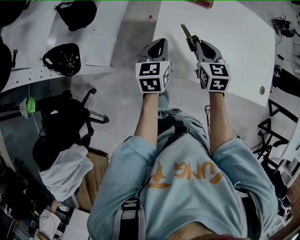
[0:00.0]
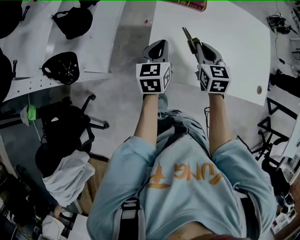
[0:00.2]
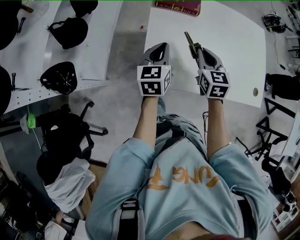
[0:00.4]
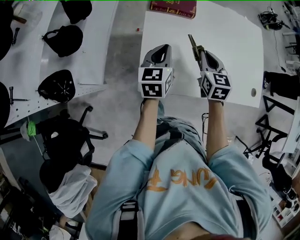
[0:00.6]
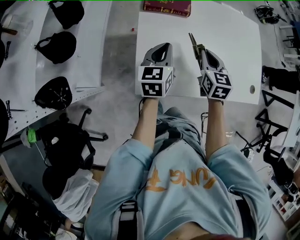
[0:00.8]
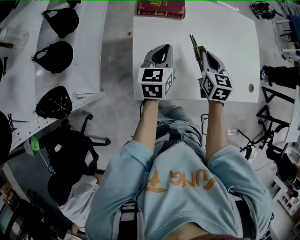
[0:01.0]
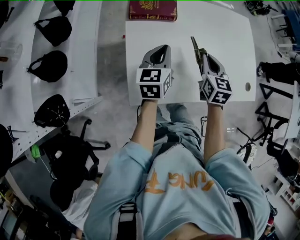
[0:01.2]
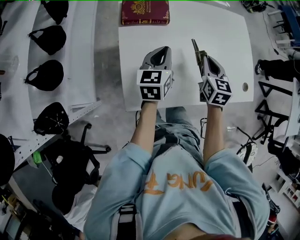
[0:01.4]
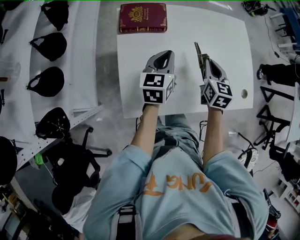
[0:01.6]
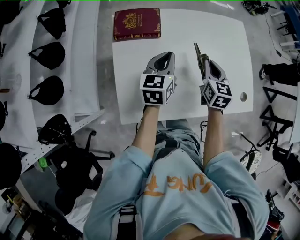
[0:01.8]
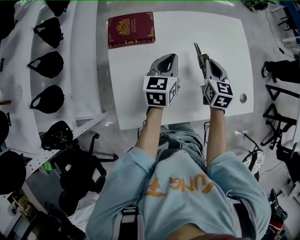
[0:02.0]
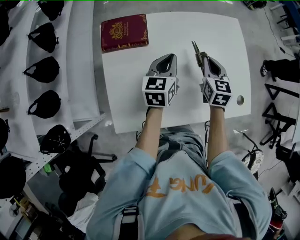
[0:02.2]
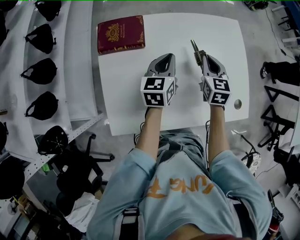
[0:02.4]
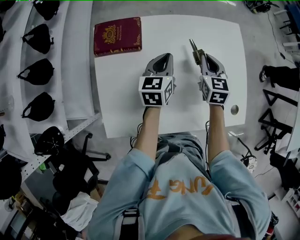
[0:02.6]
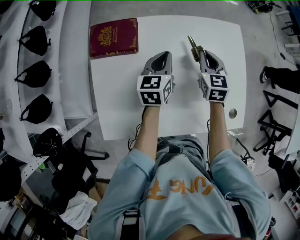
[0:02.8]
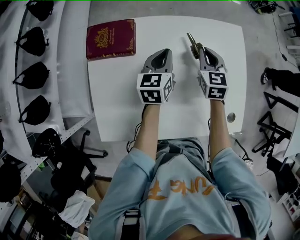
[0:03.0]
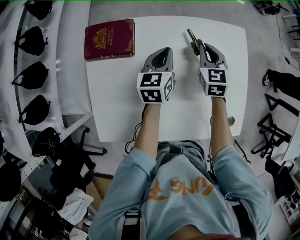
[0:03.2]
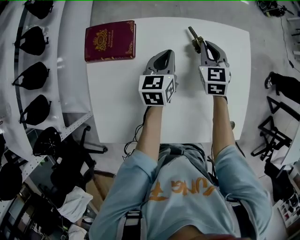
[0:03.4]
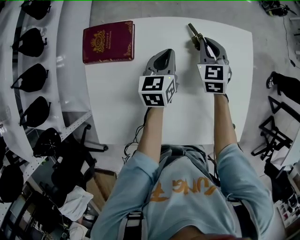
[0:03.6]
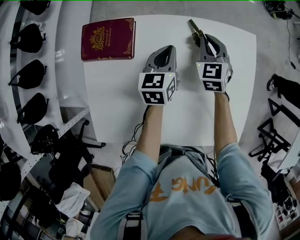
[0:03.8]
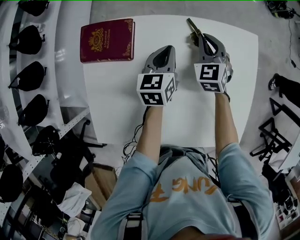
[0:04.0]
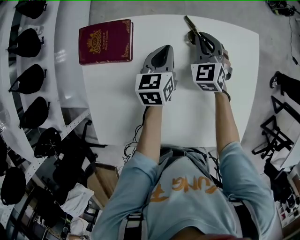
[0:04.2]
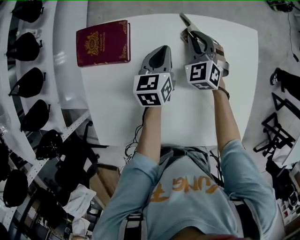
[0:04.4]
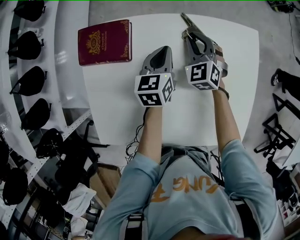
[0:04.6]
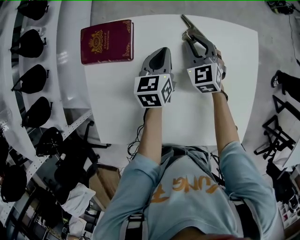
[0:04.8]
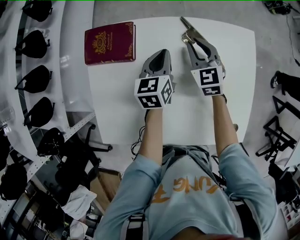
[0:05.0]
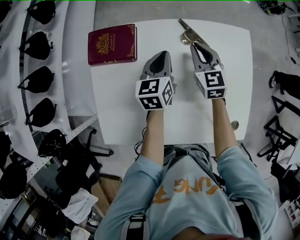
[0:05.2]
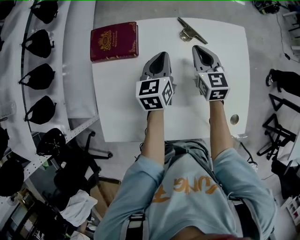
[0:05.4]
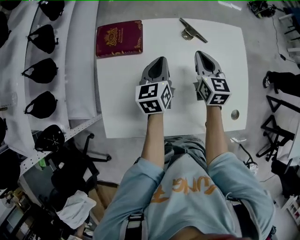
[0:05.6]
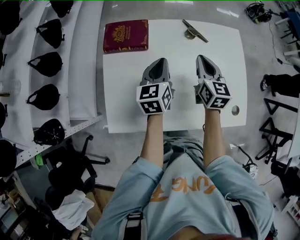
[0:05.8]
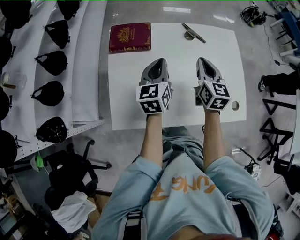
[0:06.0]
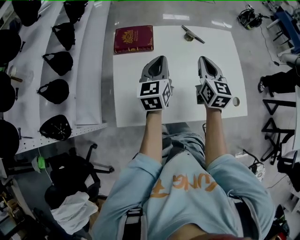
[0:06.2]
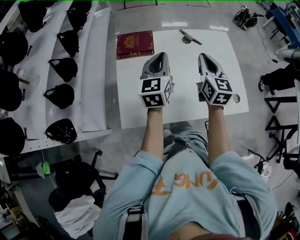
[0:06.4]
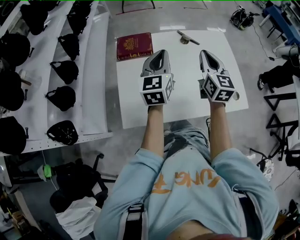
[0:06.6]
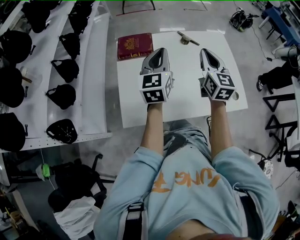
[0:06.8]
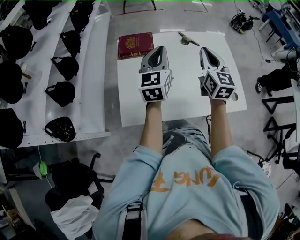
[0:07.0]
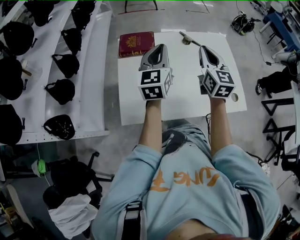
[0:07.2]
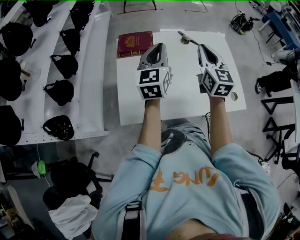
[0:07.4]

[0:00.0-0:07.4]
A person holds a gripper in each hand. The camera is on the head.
0.0 to 1.4 s: The grippers both shift to the right and forward by approximately 20 cm. The right gripper turns by some 30 degrees.
1.4 to 3.0 s: Both grippers move forward and to the right, about 25 cm.
3.0 to 4.4 s: The left gripper goes approximately 10 cm forward and downward. The right gripper travels forward, downward and to the left by about 10 cm, and swivels about 40 degrees.
4.4 to 6.0 s: The right gripper shifts some 25 cm backward and upward, and rotates around the line of its fingers by about 50 degrees, clockwise from behind; the left gripper shifts roughly 25 cm backward, upward and to the left.
6.0 to 7.4 s: The left gripper moves upward, about 10 cm, while the right gripper shifts some 15 cm upward and backward.

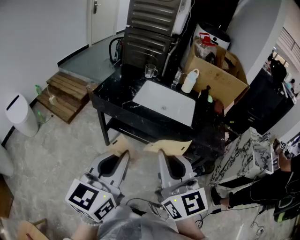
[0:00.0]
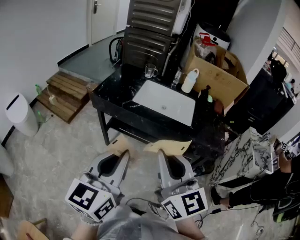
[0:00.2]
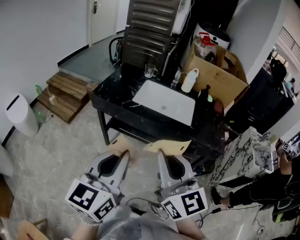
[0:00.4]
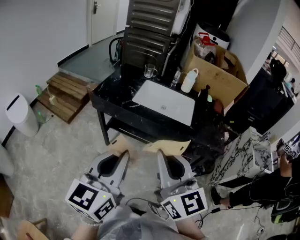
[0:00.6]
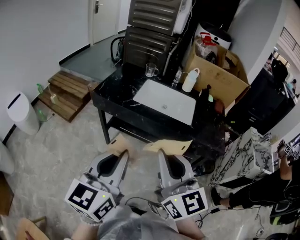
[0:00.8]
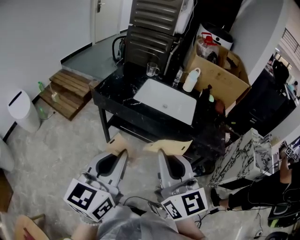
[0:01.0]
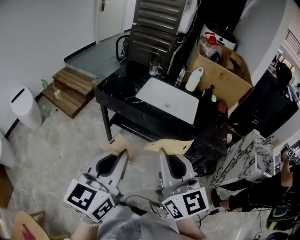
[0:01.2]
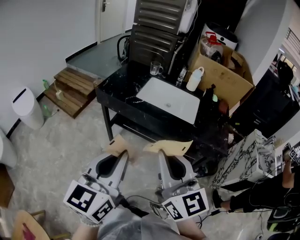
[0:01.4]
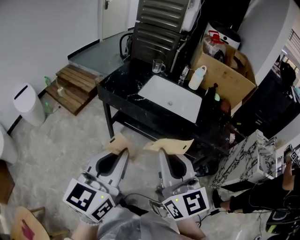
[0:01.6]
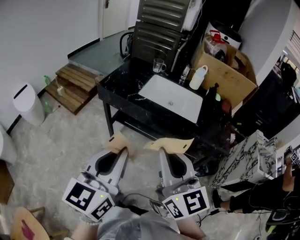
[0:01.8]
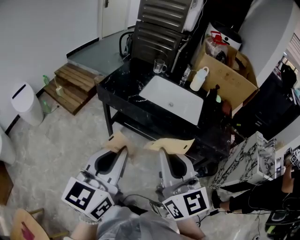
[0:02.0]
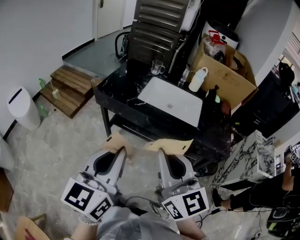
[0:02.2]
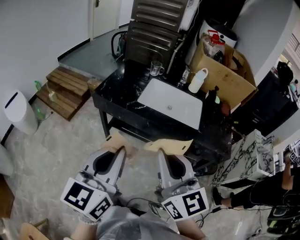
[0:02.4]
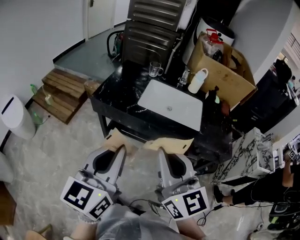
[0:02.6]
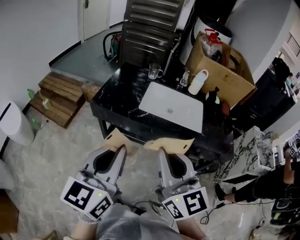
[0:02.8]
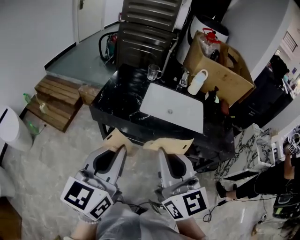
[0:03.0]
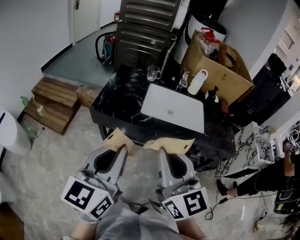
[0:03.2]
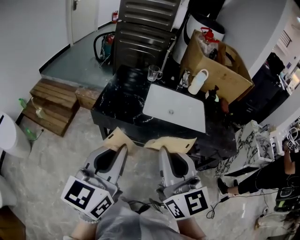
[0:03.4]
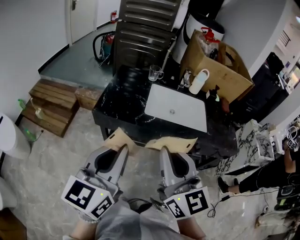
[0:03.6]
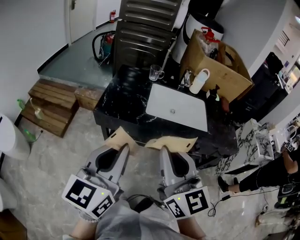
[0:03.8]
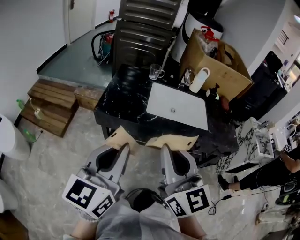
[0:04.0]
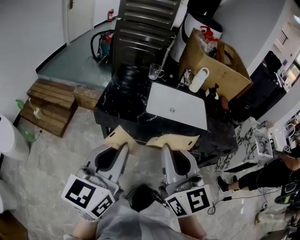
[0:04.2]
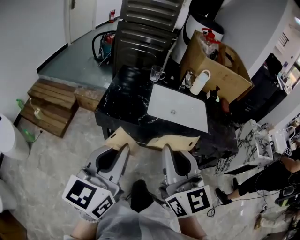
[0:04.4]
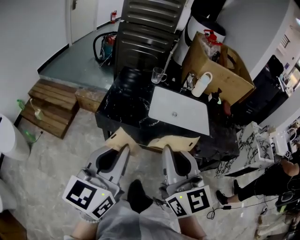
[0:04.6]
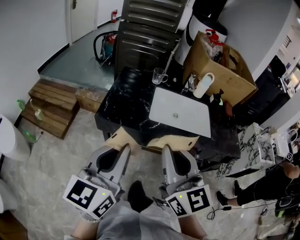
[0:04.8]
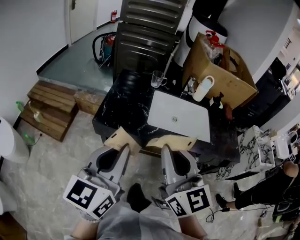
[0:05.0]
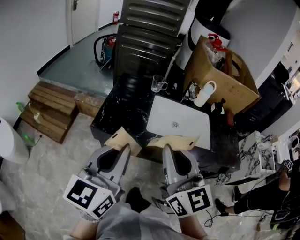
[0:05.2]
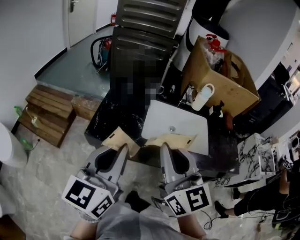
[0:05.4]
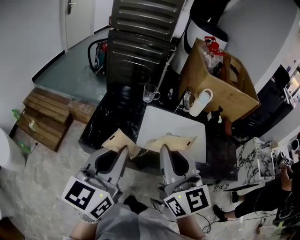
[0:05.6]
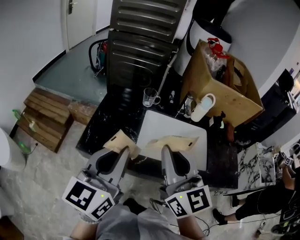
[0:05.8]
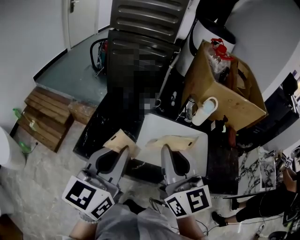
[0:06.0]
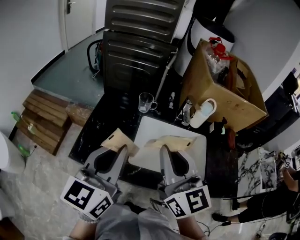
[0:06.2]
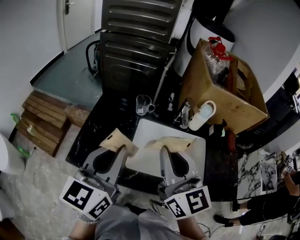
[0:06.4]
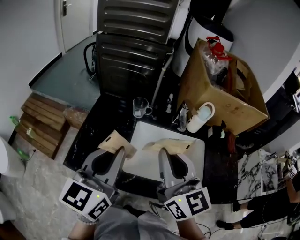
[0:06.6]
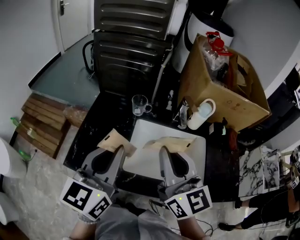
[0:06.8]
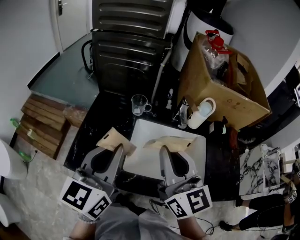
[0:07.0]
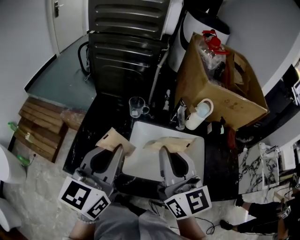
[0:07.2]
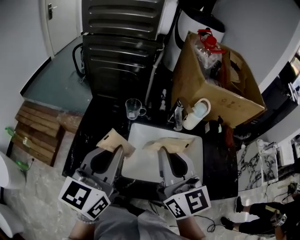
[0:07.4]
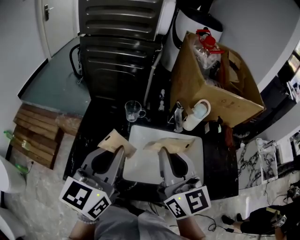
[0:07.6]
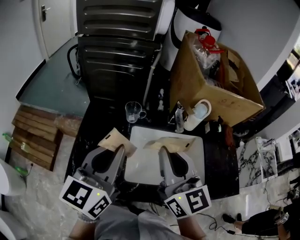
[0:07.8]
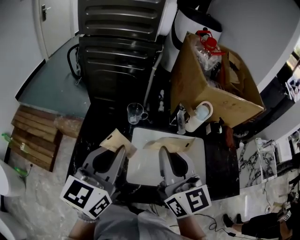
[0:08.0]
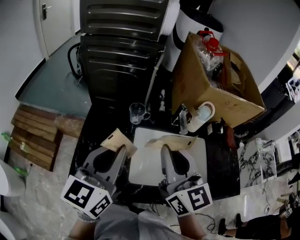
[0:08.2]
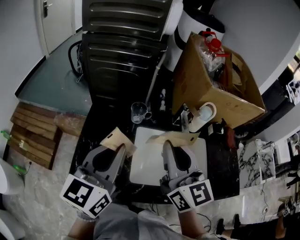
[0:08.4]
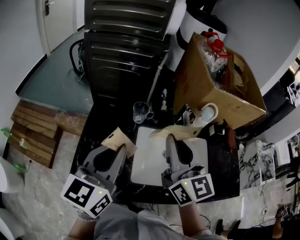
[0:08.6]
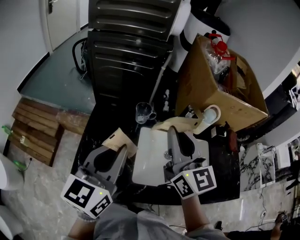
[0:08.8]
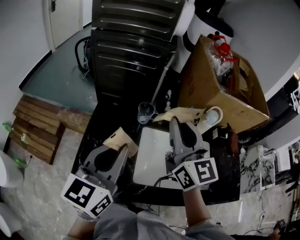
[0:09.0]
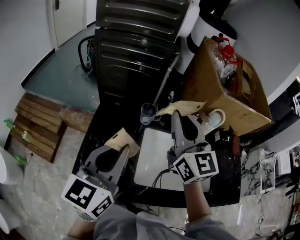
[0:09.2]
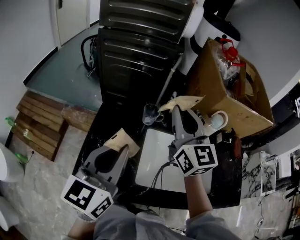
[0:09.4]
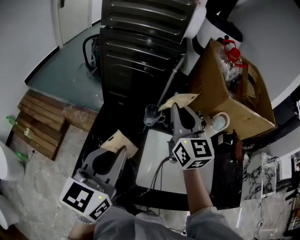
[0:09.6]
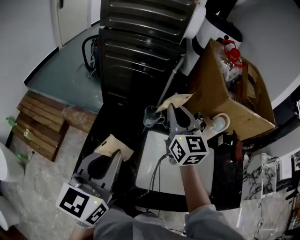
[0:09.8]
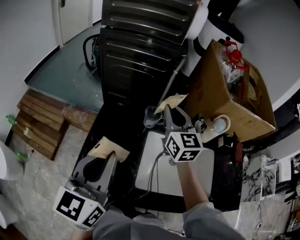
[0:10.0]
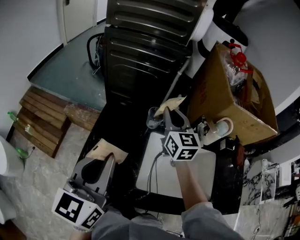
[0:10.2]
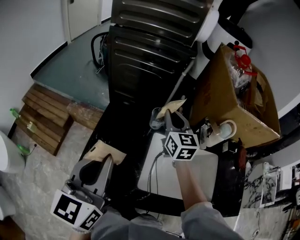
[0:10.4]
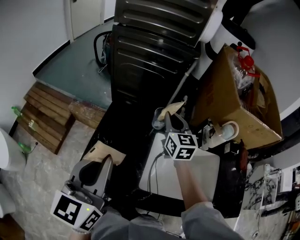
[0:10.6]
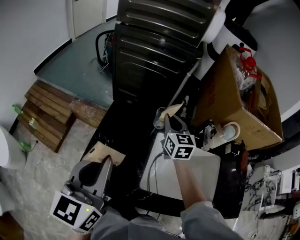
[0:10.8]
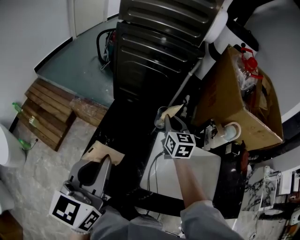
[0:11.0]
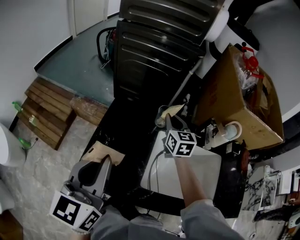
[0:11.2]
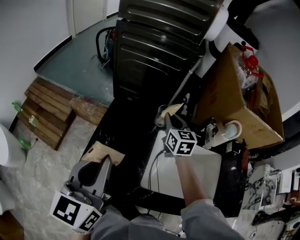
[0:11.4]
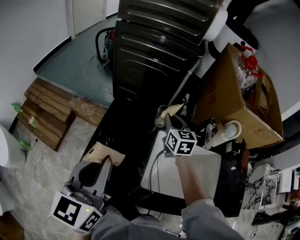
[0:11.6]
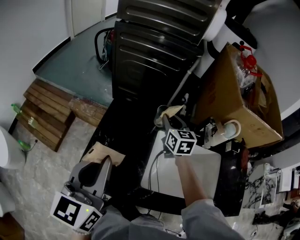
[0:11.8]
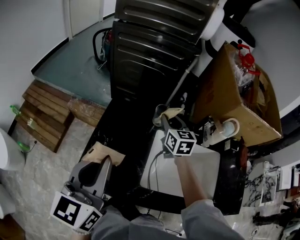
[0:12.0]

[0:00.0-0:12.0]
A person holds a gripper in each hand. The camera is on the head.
0.0 to 1.6 s: The grippers make only small movements.
1.6 to 3.0 s: Both grippers travel together forward and to the left, roughly 20 cm.
3.0 to 4.4 s: Both grippers move to the left, some 5 cm.
4.4 to 6.0 s: Both grippers move forward, some 30 cm.
6.0 to 7.6 s: Both grippers travel together forward, roughly 10 cm.
7.6 to 9.0 s: The left gripper shifts roughly 5 cm to the left; the right gripper goes roughly 10 cm forward and to the left.
9.0 to 10.4 s: The right gripper is displaced forward and downward by some 20 cm, while the left gripper is displaced to the left by approximately 5 cm.
10.4 to 12.0 s: The right gripper moves downward, approximately 5 cm, and opens up.

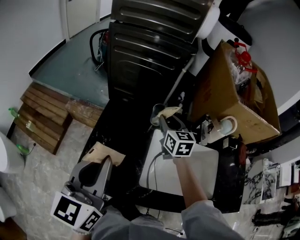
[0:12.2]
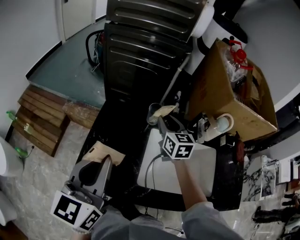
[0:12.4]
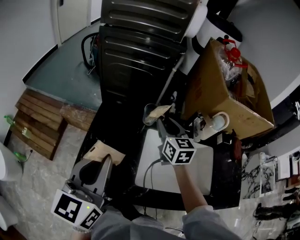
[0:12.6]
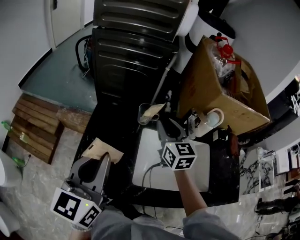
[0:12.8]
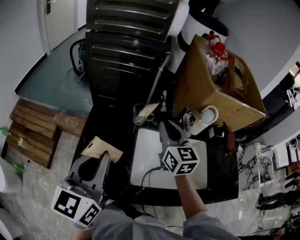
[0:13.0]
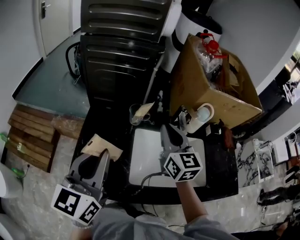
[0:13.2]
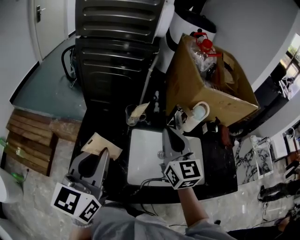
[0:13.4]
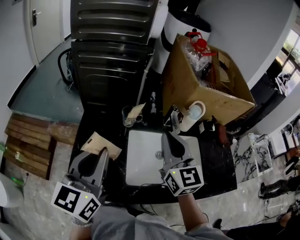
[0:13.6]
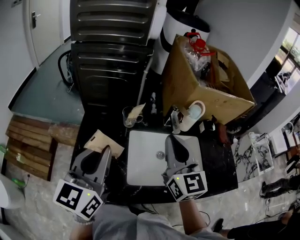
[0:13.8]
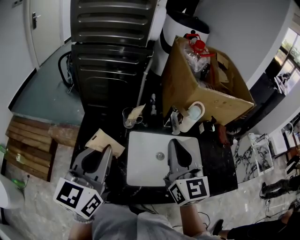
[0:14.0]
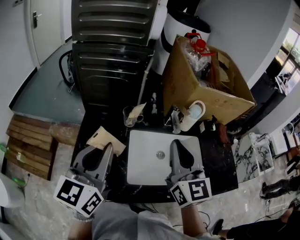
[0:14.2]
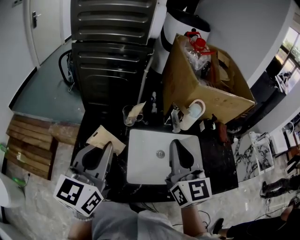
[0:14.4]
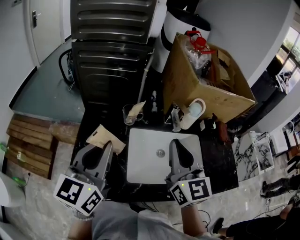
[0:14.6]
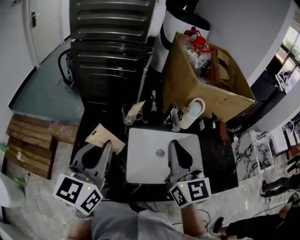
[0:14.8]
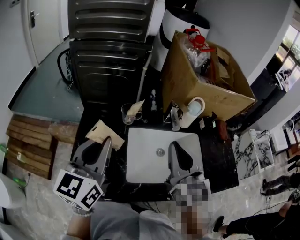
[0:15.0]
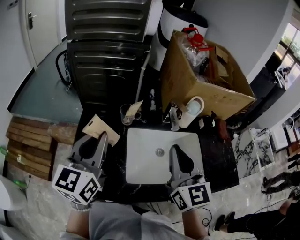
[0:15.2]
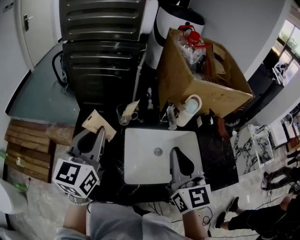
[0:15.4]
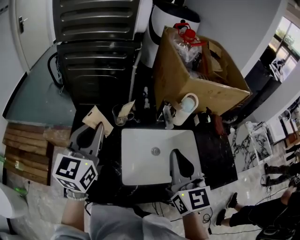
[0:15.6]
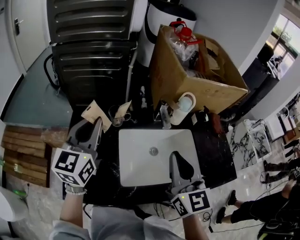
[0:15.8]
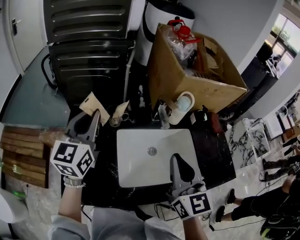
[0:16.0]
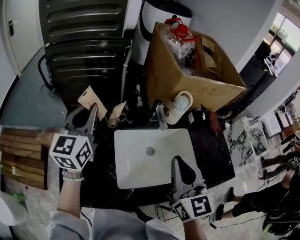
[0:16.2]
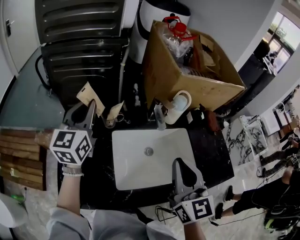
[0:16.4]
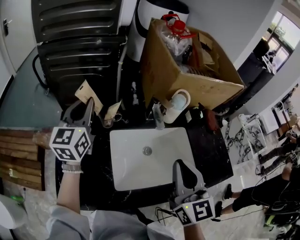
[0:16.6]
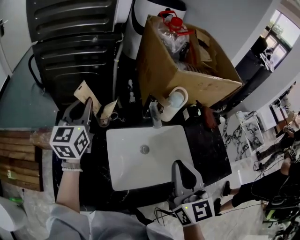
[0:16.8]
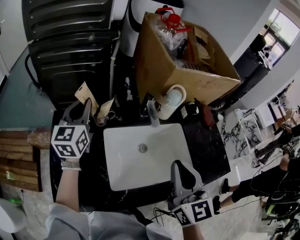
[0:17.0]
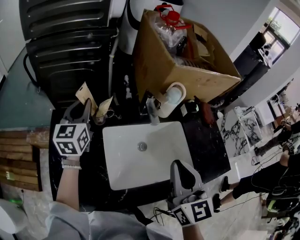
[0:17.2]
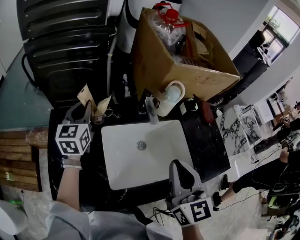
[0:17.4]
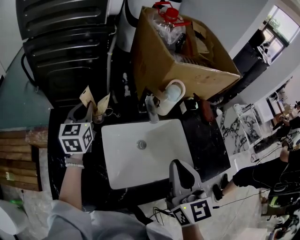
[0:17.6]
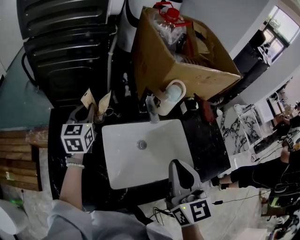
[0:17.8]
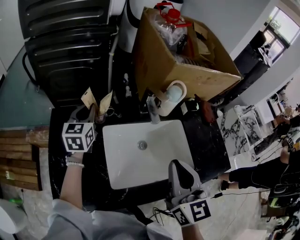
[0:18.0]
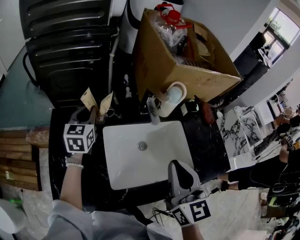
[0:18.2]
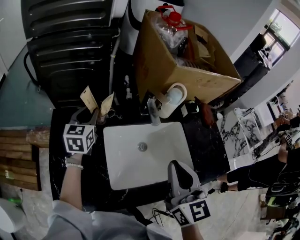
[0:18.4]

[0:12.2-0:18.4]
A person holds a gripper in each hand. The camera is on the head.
12.2 to 13.8 s: The left gripper heads to the right, covering some 5 cm, while the right gripper heads backward, upward and to the right, covering roughly 25 cm, rotates about 30 degrees, and closes.
13.8 to 15.4 s: The left gripper goes roughly 5 cm forward. Meanwhile the right gripper ends up approximately 5 cm from where it was.
15.4 to 16.8 s: The left gripper travels forward by some 15 cm. The right gripper travels to the right by roughly 5 cm.
16.8 to 18.4 s: The left gripper heads downward, covering roughly 10 cm.
